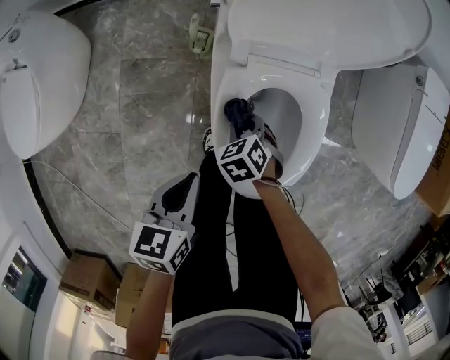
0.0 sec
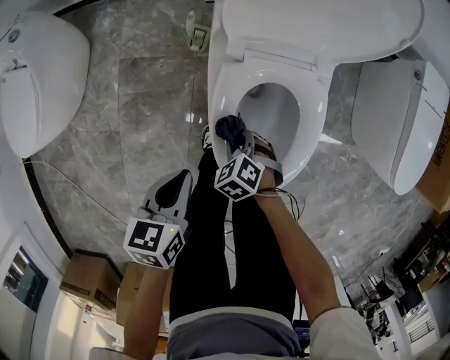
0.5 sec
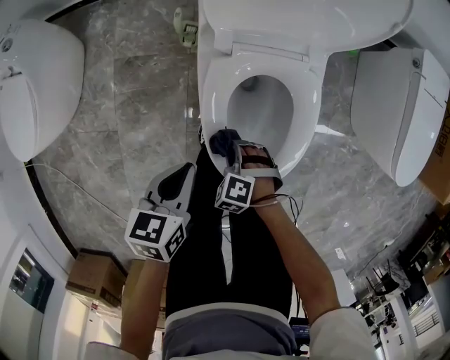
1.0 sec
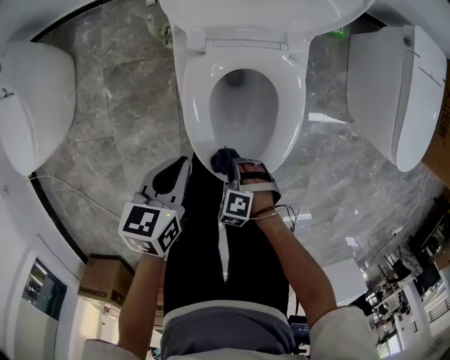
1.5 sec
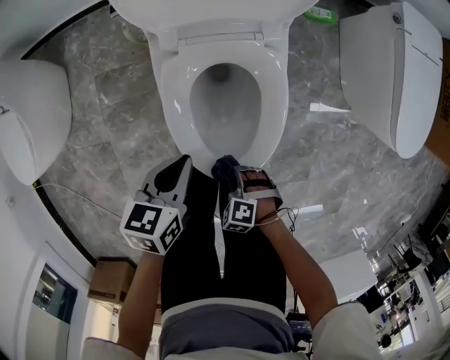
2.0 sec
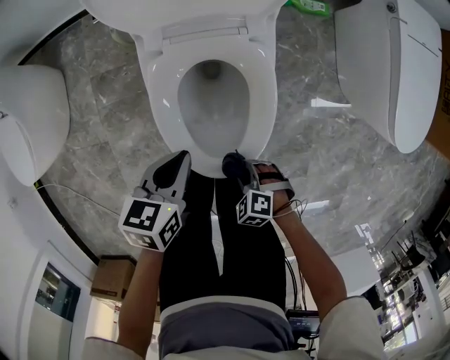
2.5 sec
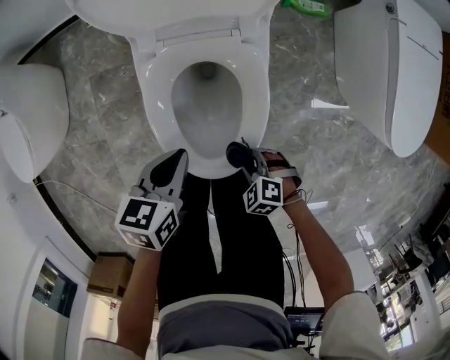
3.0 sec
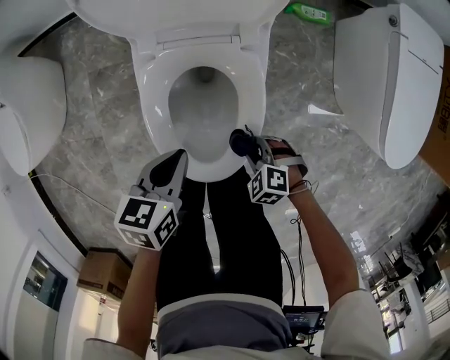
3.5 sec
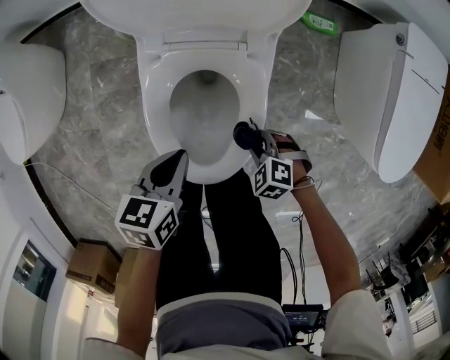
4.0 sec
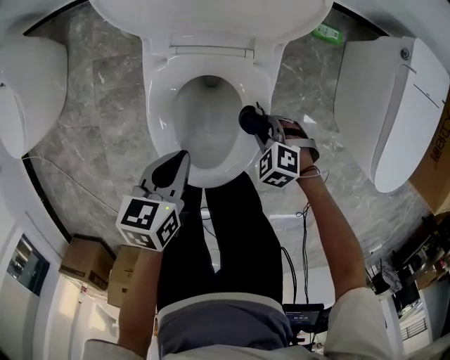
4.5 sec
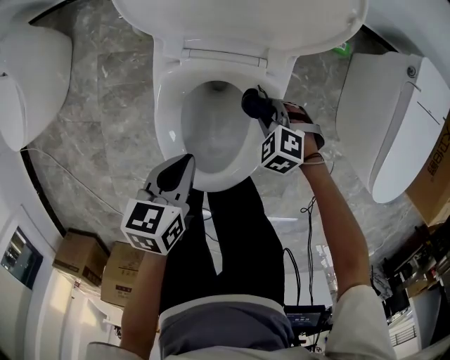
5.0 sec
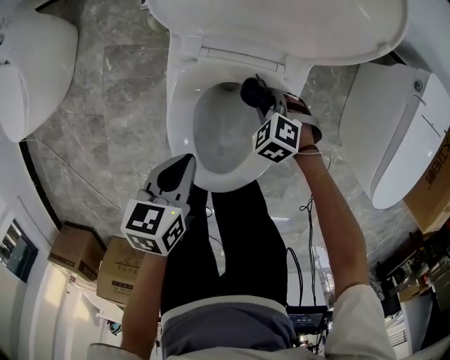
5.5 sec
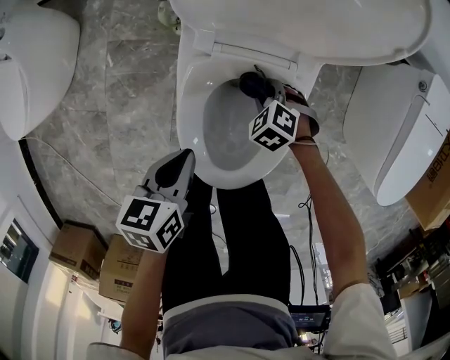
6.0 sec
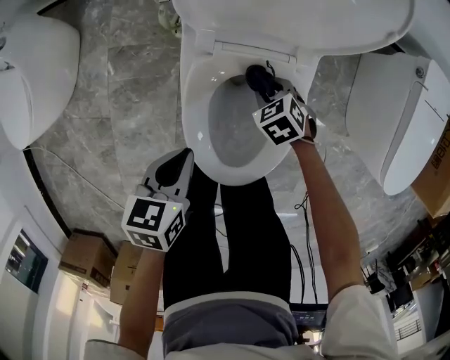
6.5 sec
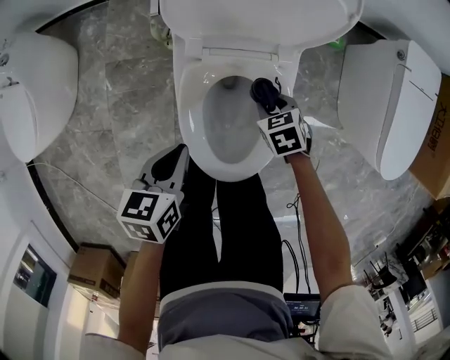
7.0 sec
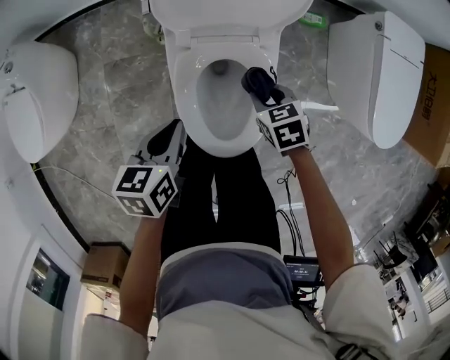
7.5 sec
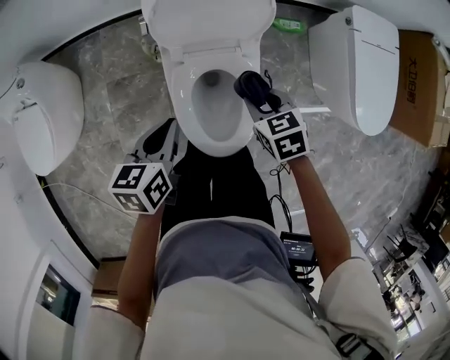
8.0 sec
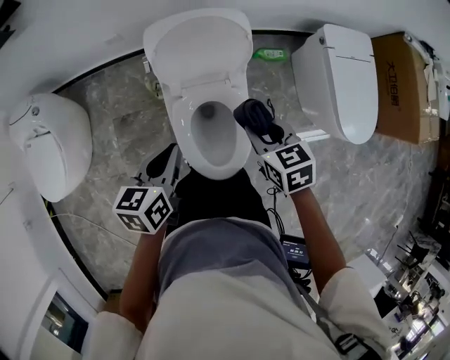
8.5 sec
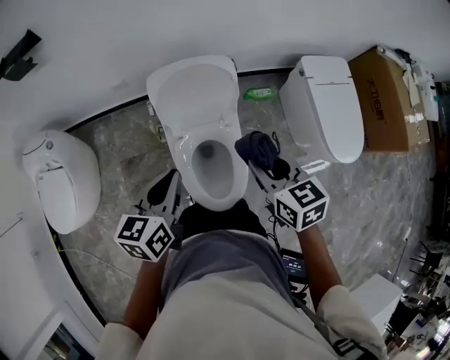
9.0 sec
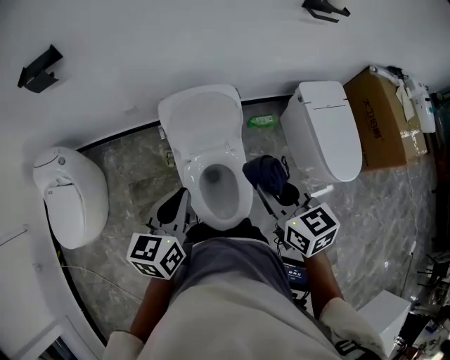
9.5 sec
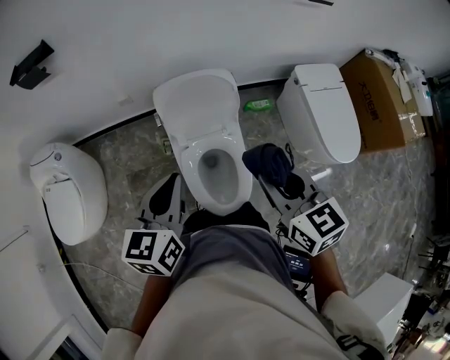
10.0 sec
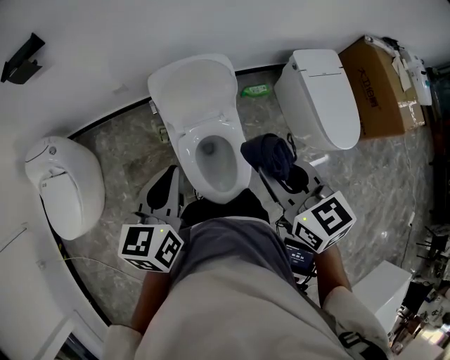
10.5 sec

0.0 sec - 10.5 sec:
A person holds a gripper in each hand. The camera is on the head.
0.0 sec - 2.0 sec: The left gripper shifts by some 10 cm. The right gripper moves approximately 25 cm, and swivels some 30 degrees.
2.0 sec - 4.0 sec: The left gripper moves about 10 cm; the right gripper moves about 20 cm.
4.0 sec - 6.5 sec: The left gripper goes roughly 10 cm to the left, while the right gripper travels forward by approximately 20 cm, and swivels some 20 degrees.
6.5 sec - 8.5 sec: The left gripper shifts roughly 25 cm upward. Meanwhile the right gripper moves upward, roughly 40 cm, and rotates about 40 degrees.
8.5 sec - 10.5 sec: The grippers both shift upward by approximately 20 cm. The right gripper rotates about 20 degrees.

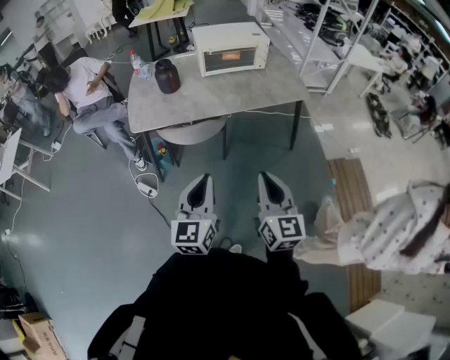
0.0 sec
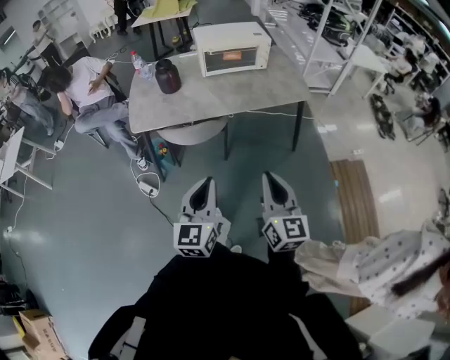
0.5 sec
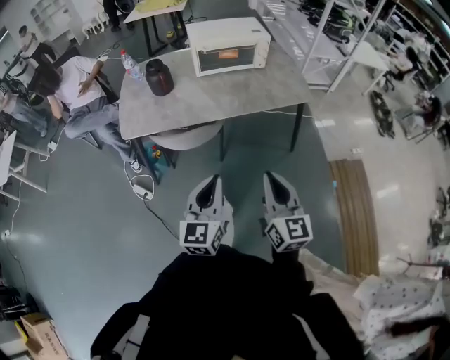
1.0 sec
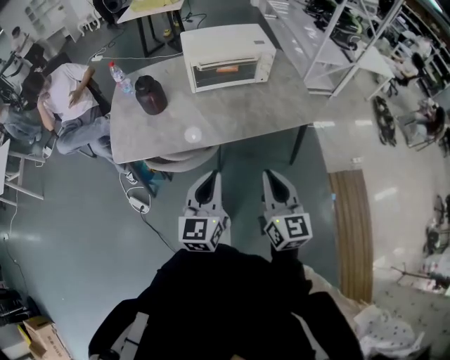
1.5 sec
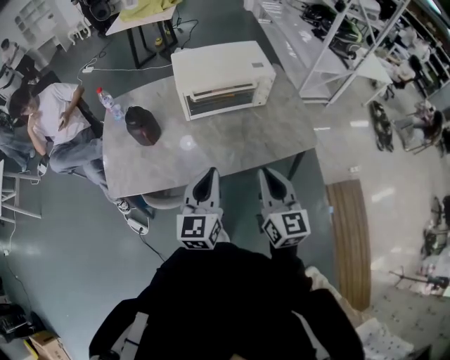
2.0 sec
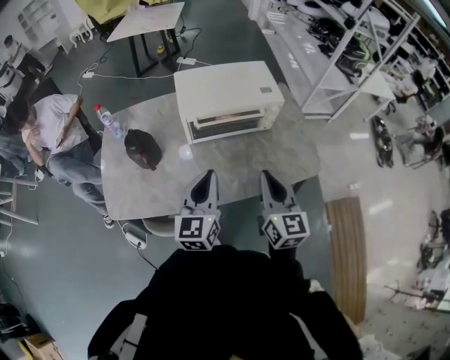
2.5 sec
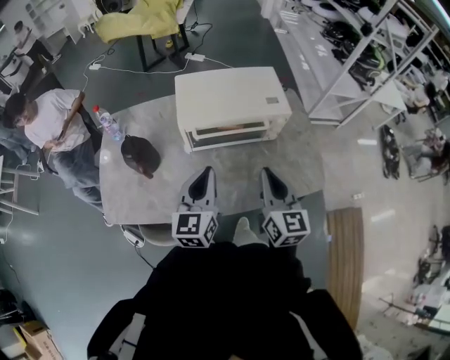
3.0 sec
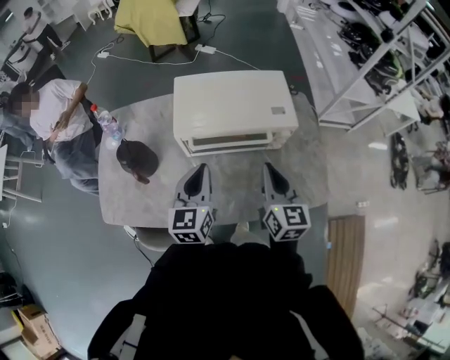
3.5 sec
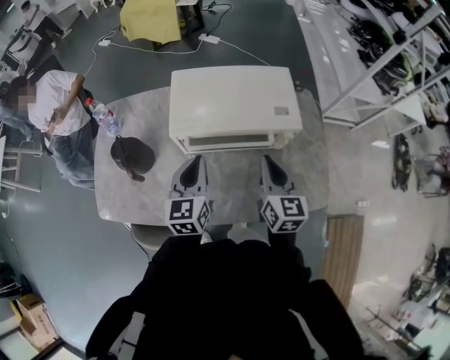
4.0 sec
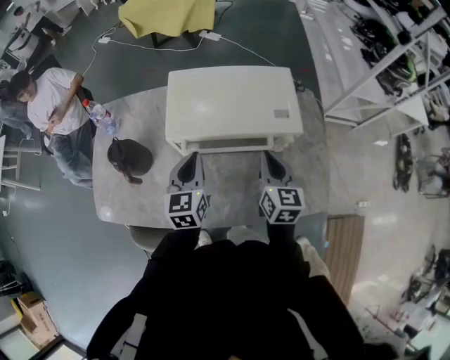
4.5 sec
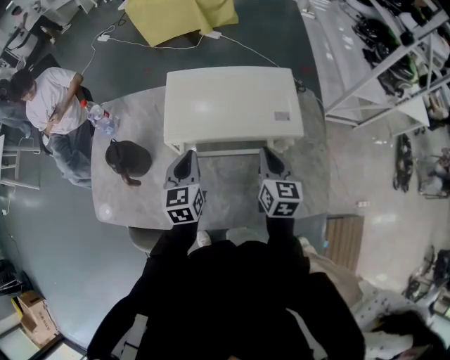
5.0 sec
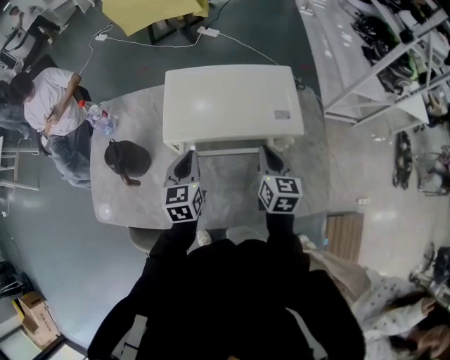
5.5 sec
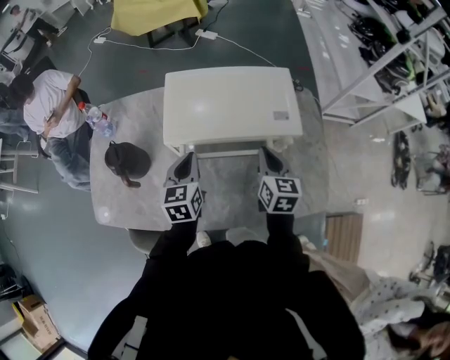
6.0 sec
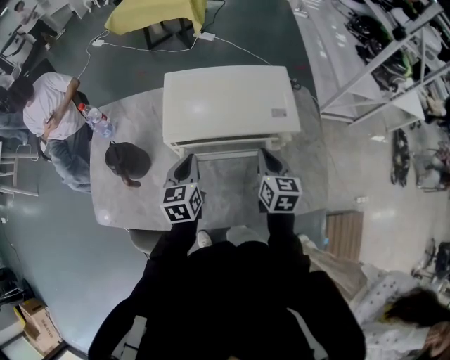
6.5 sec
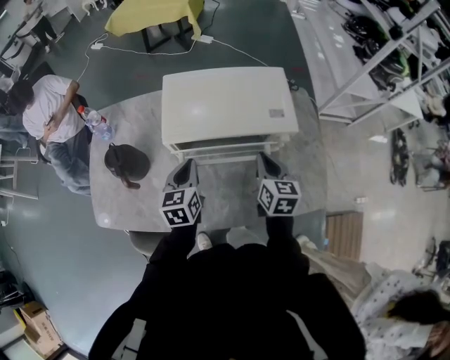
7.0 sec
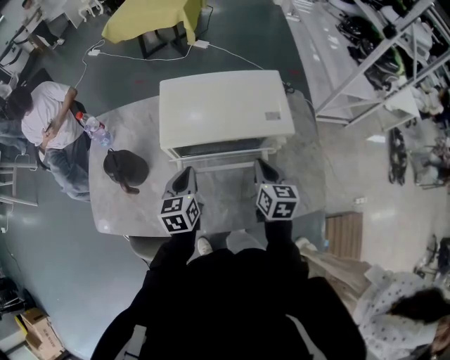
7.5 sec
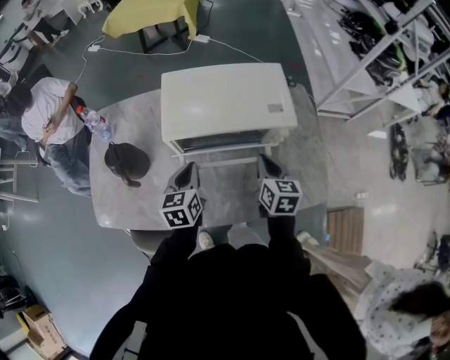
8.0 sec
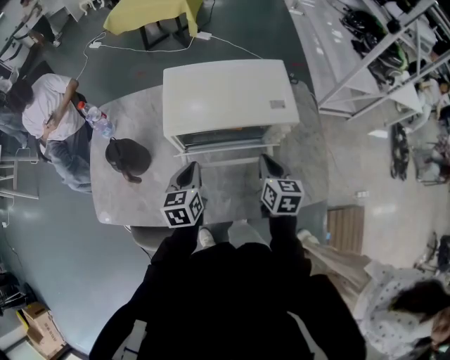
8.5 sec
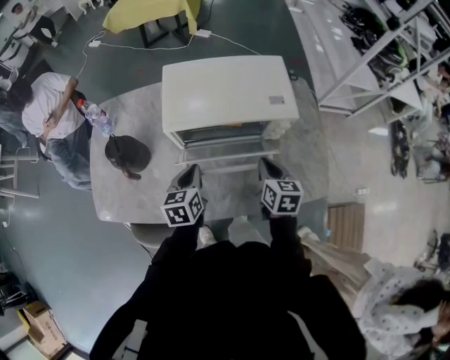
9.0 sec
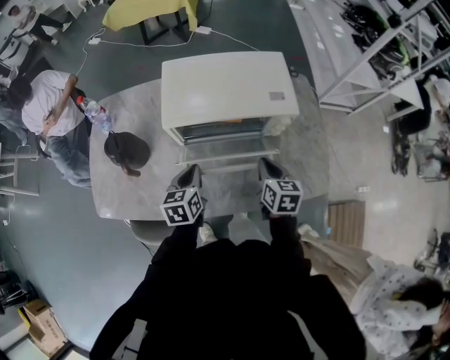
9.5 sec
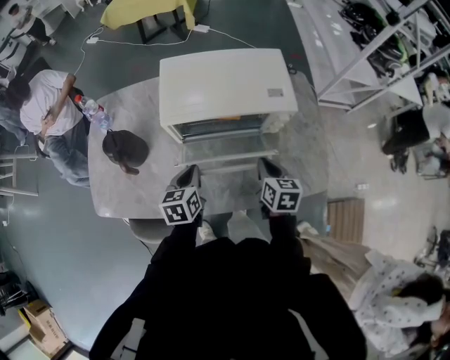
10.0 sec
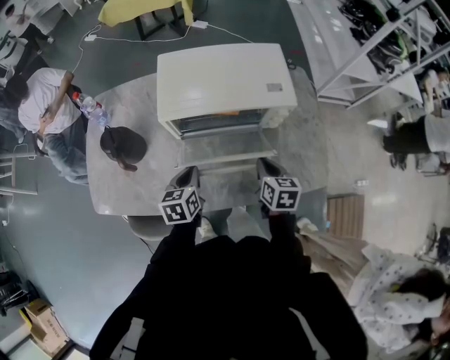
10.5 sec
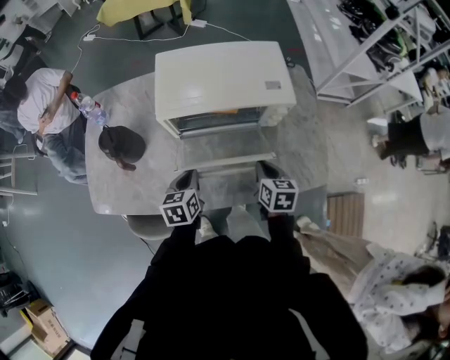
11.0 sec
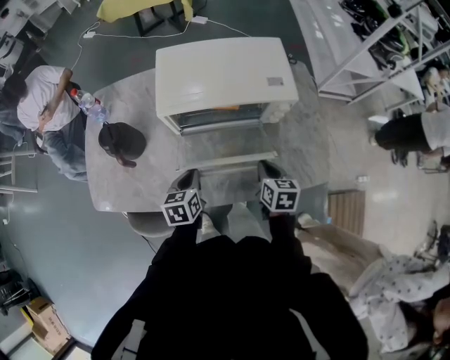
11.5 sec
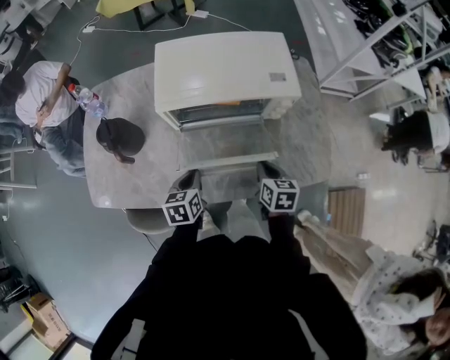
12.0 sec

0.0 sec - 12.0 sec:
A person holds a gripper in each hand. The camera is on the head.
0.0 sec - 2.0 sec: The pair of grippers is taken forward, roughly 50 cm.
2.0 sec - 4.0 sec: The grippers both shift forward by roughly 35 cm.
4.0 sec - 6.0 sec: Both grippers move downward and forward, approximately 10 cm.
6.0 sec - 8.0 sec: The right gripper changes place by some 5 cm.
8.0 sec - 10.0 sec: The right gripper goes roughly 5 cm backward and downward; the left gripper is displaced backward by some 5 cm.
10.0 sec - 12.0 sec: The two grippers go some 5 cm downward.

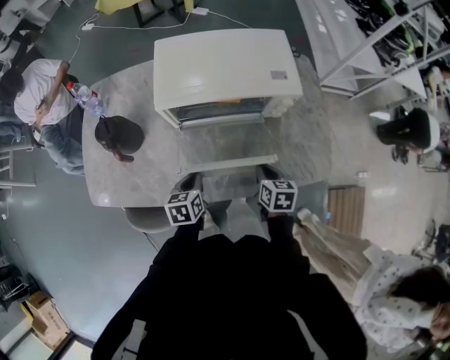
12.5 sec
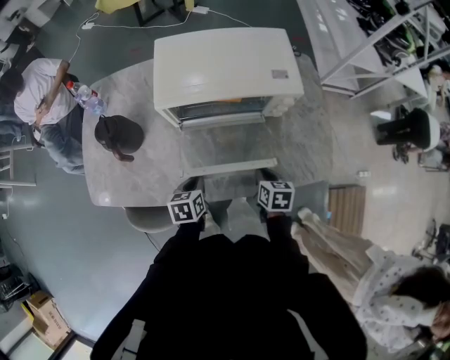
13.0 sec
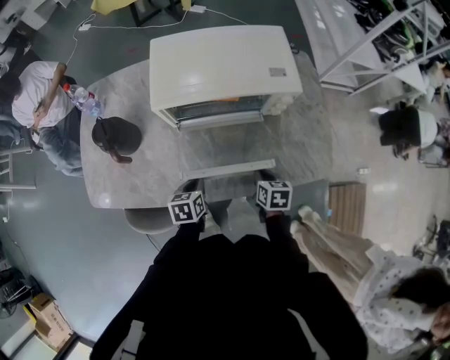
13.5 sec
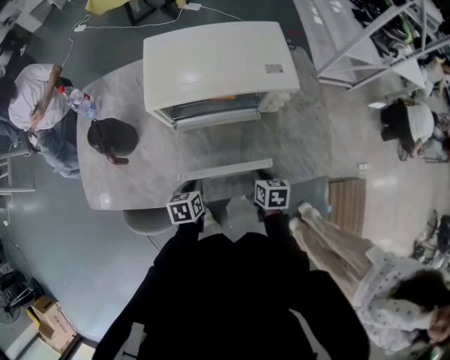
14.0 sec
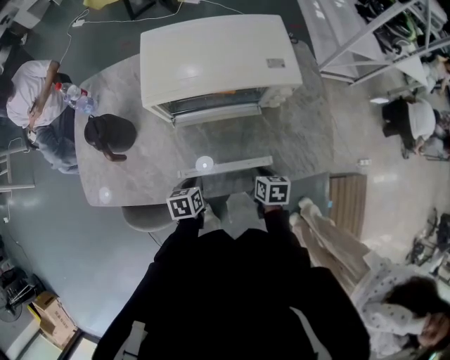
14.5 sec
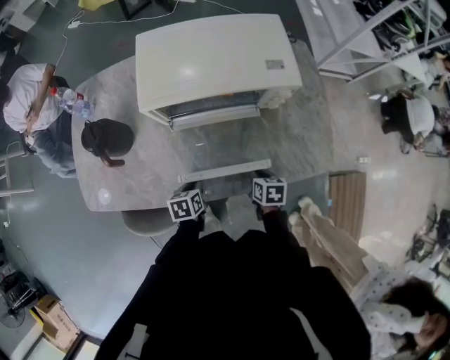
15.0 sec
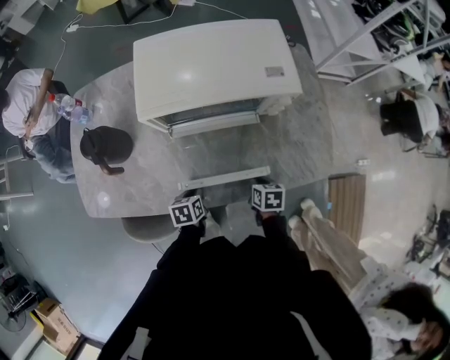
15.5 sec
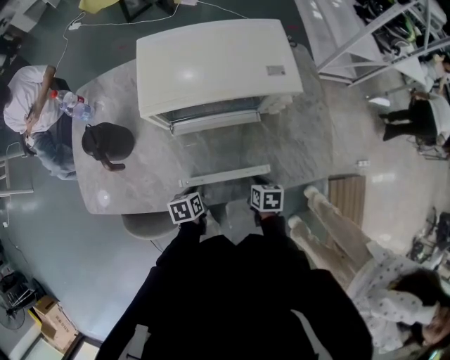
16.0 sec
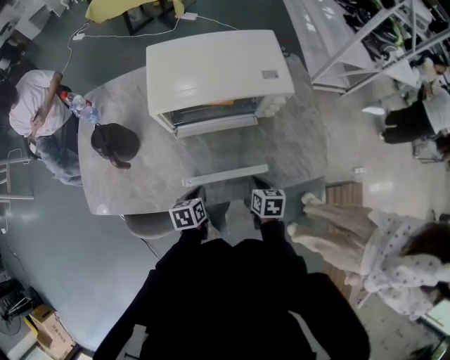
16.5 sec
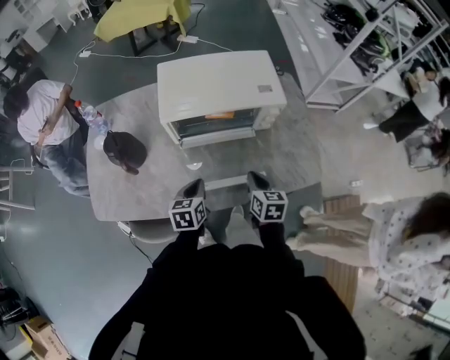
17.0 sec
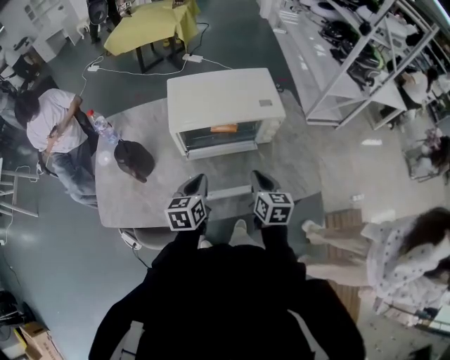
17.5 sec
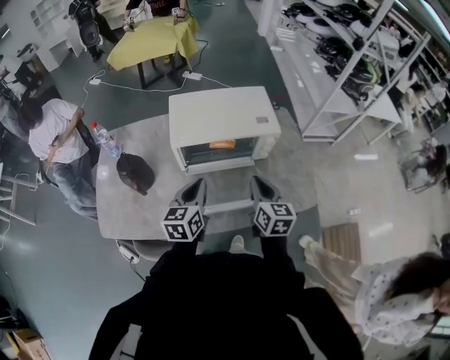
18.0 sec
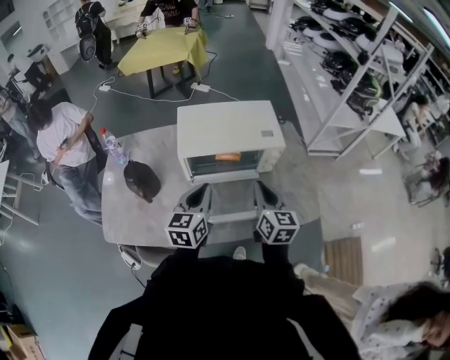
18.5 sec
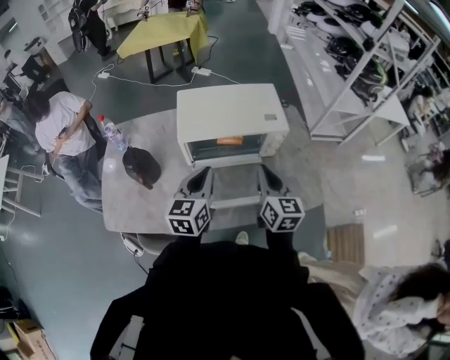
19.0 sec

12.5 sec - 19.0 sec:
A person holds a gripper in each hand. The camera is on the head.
12.5 sec - 14.5 sec: Both grippers travel together downward, some 10 cm.
14.5 sec - 17.0 sec: The two grippers go about 10 cm upward. The right gripper changes its angle by about 20 degrees.
17.0 sec - 19.0 sec: The grippers both shift upward by some 20 cm. The left gripper rotates some 30 degrees, while the right gripper rotates roughly 30 degrees.
